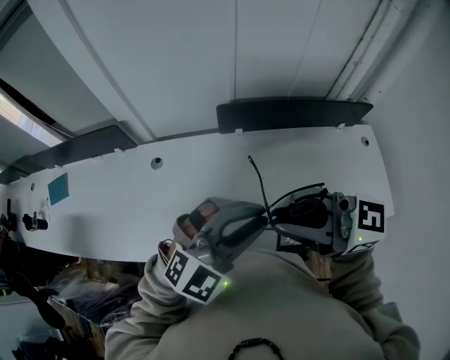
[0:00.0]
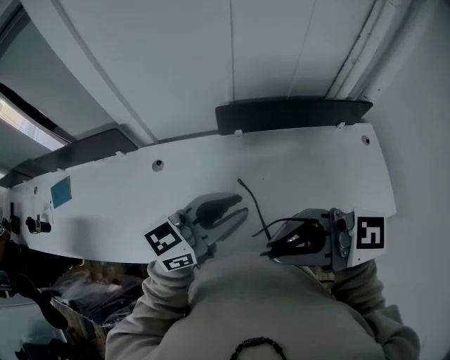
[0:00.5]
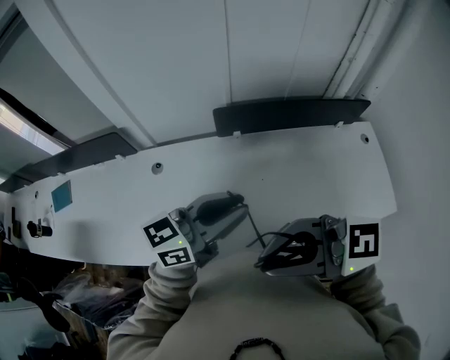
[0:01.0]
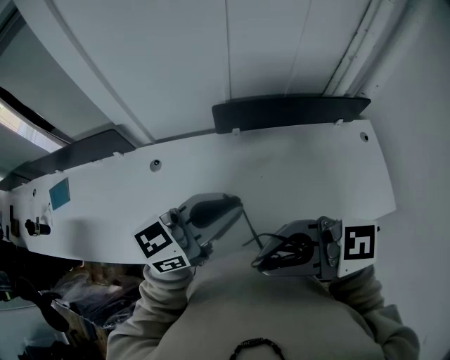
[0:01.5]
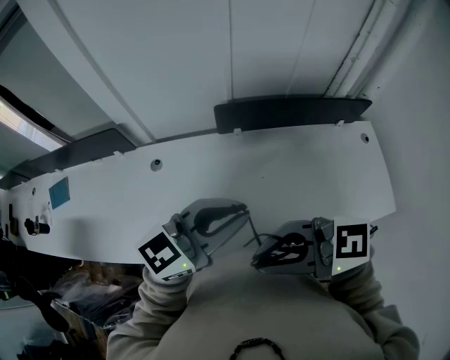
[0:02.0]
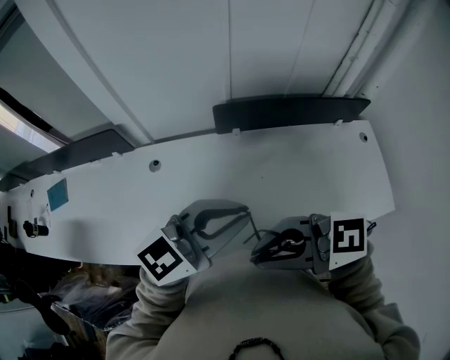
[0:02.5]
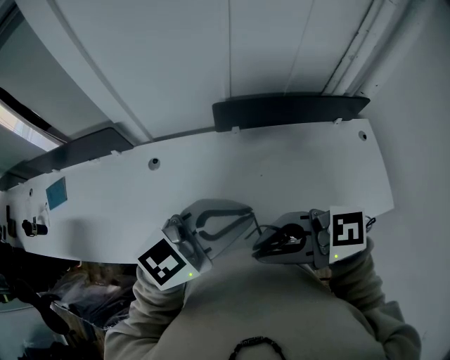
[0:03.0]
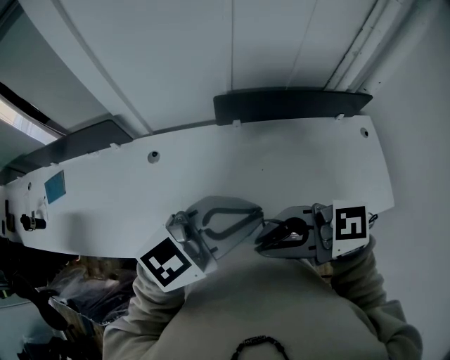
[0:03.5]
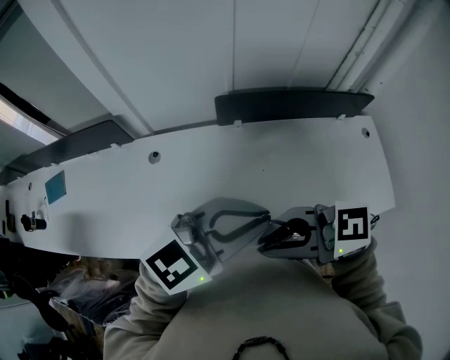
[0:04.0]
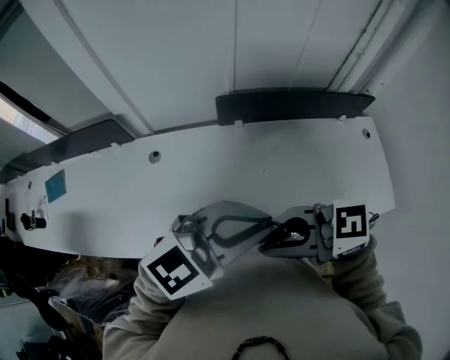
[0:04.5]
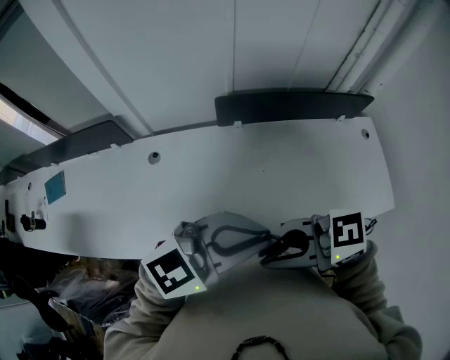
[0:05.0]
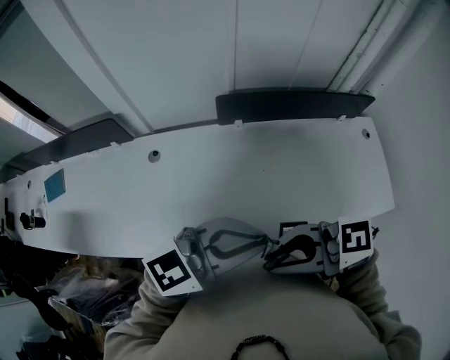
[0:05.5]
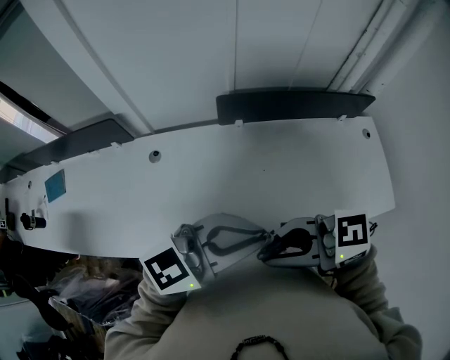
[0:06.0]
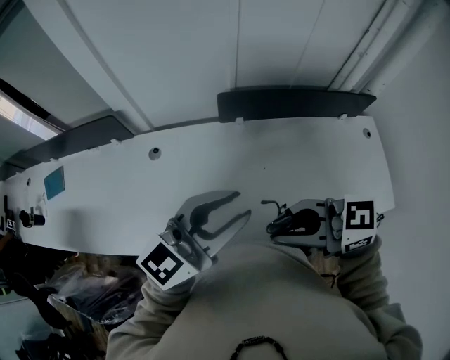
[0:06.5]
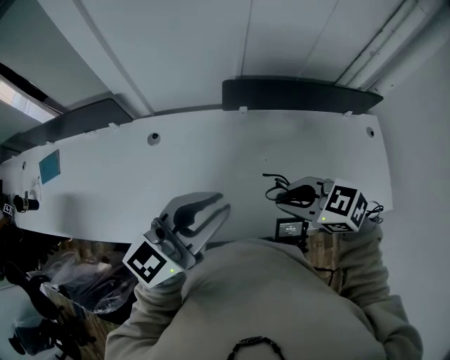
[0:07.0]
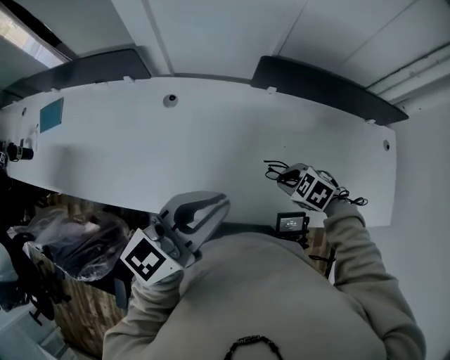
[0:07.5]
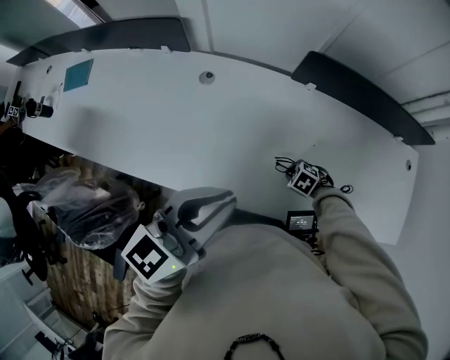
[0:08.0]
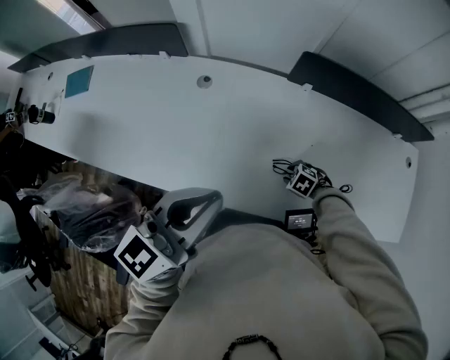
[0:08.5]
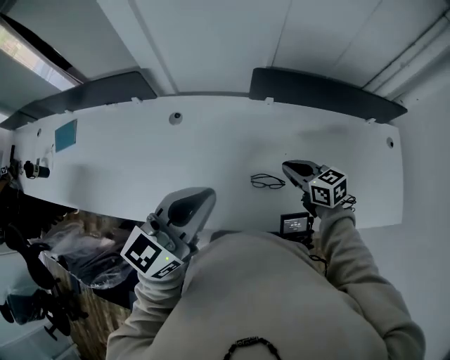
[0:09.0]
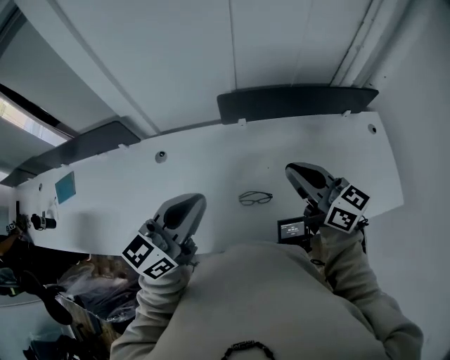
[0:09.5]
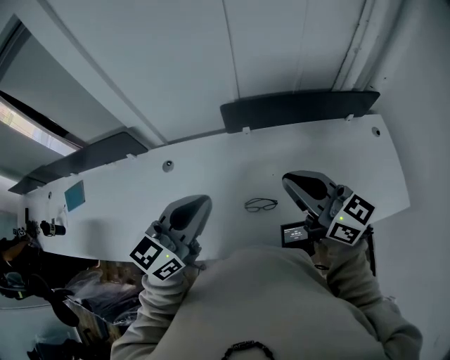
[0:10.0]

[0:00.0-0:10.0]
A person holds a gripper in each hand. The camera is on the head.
0:00.0 to 0:02.0: The left gripper twists some 40 degrees counterclockwise, seen from behind; the right gripper changes place by roughly 10 cm, and rotates approximately 20 degrees.
0:02.0 to 0:04.0: The grippers move only a little.
0:04.0 to 0:06.0: The grippers stay close to where they were, moving slightly.
0:06.0 to 0:08.0: The right gripper moves downward, roughly 50 cm, and tilts its fingers some 70 degrees downward. Meanwhile the left gripper changes place by some 20 cm, and turns by approximately 50 degrees.
0:08.0 to 0:10.0: The right gripper moves upward, about 50 cm, and tips its fingers upward by some 80 degrees. Meanwhile the left gripper ends up approximately 10 cm from where it was.

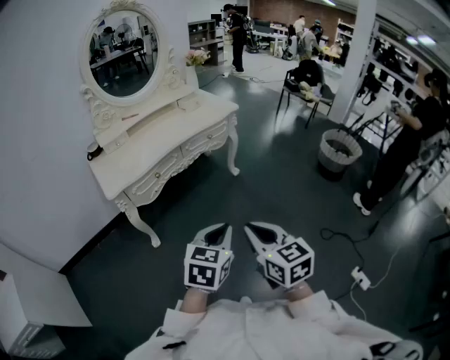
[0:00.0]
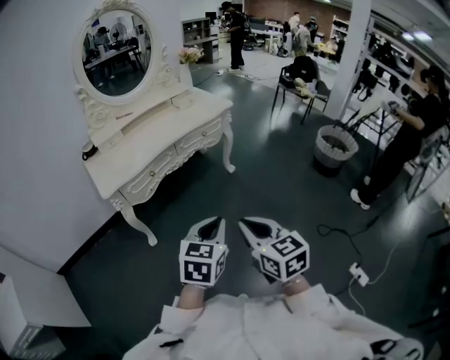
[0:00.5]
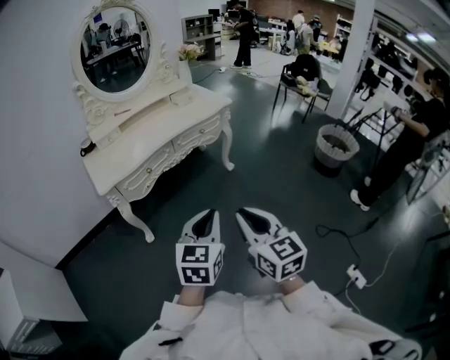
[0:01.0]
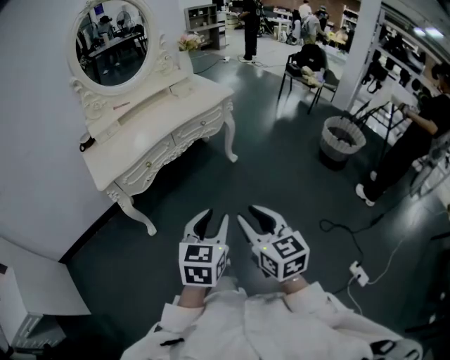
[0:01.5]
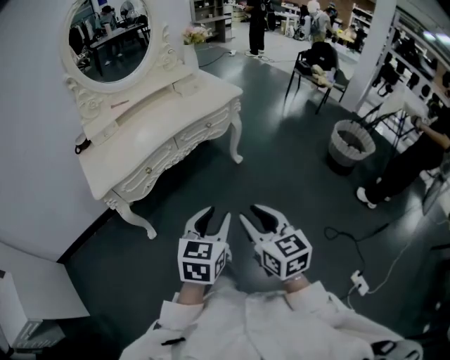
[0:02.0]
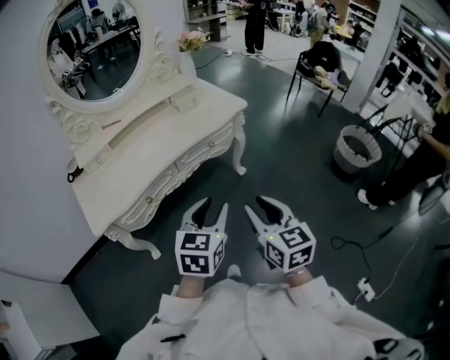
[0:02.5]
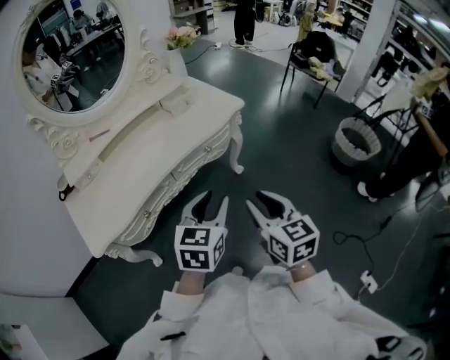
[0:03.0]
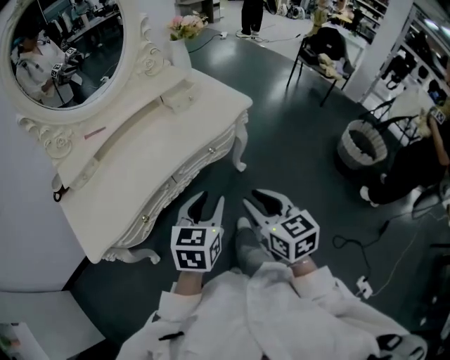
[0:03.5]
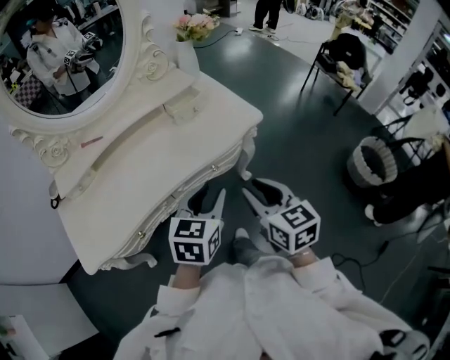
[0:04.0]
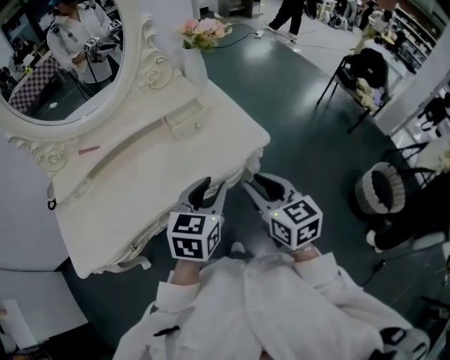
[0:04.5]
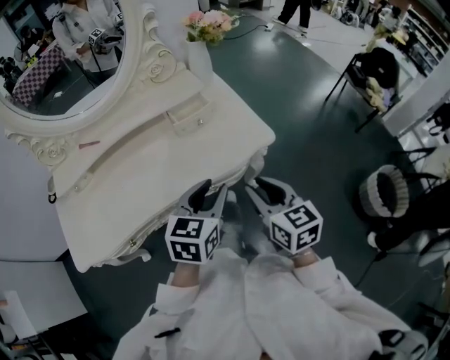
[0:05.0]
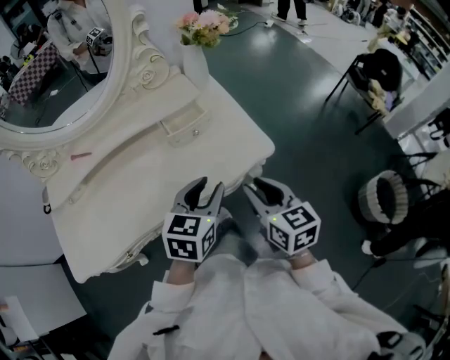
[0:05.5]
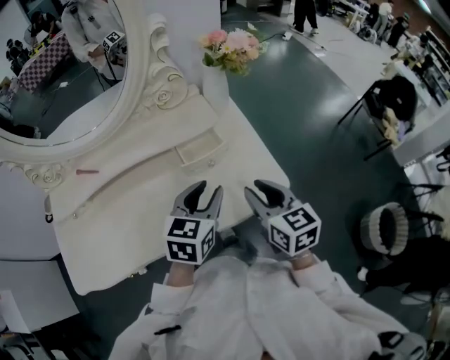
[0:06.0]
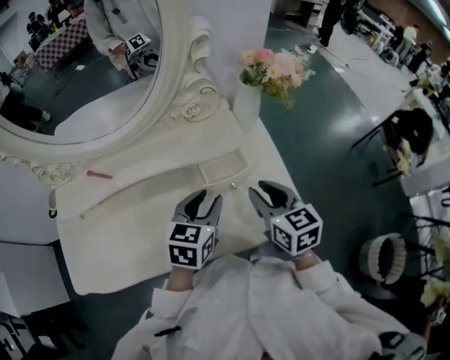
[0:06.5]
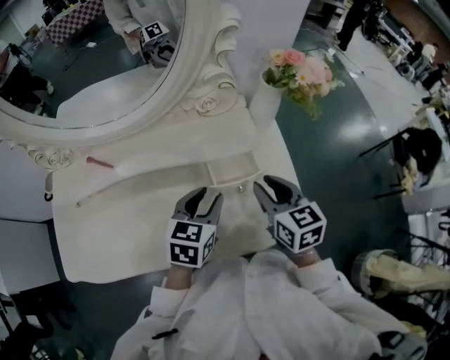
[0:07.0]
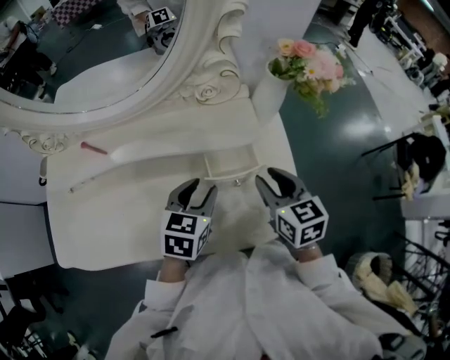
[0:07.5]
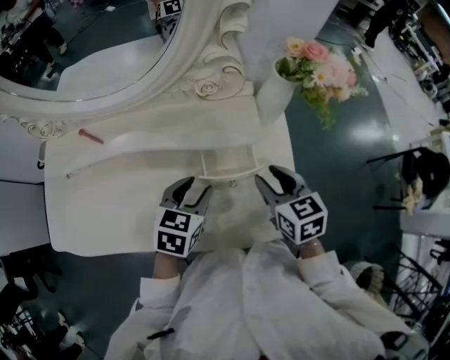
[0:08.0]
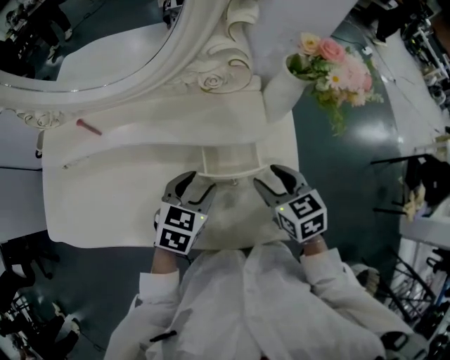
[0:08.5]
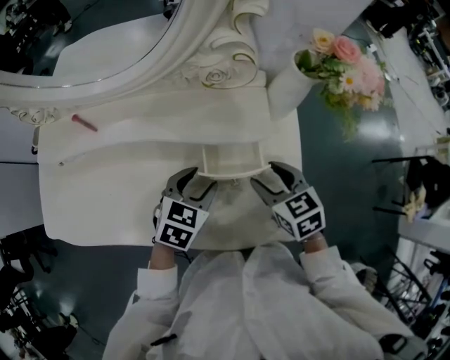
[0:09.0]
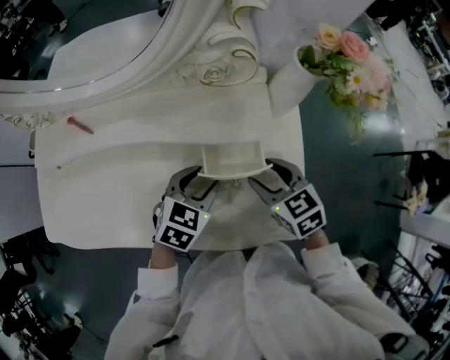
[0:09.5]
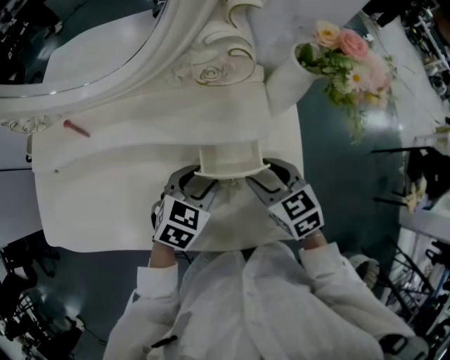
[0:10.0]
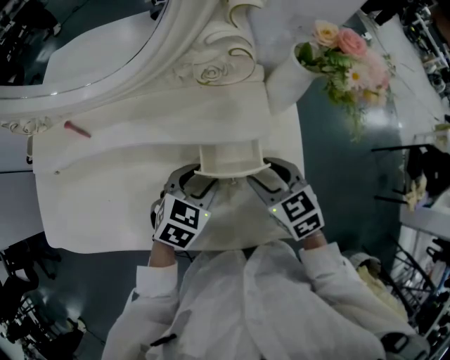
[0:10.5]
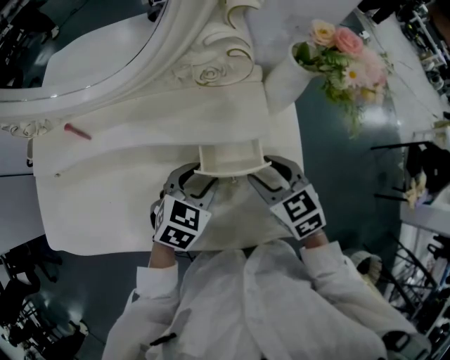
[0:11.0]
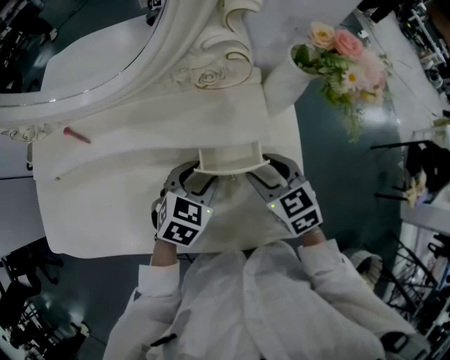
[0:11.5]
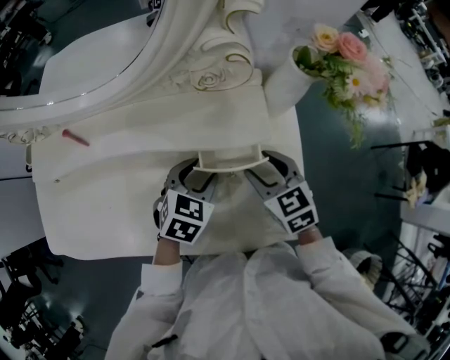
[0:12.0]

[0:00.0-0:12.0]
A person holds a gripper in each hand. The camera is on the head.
0:00.0 to 0:02.0: Both grippers travel together forward, approximately 10 cm. The right gripper opens up. The left gripper opens up.
0:02.0 to 0:04.0: The pair of grippers is taken forward, roughly 40 cm.
0:04.0 to 0:06.0: Both grippers move forward, about 25 cm.
0:06.0 to 0:08.0: The right gripper heads forward, covering approximately 15 cm, and swivels some 20 degrees. Meanwhile the left gripper shifts approximately 15 cm forward, downward and to the left.
0:08.0 to 0:10.0: The right gripper shifts by some 5 cm. The left gripper moves approximately 5 cm.
0:10.0 to 0:12.0: The grippers stay close to where they were, moving slightly.

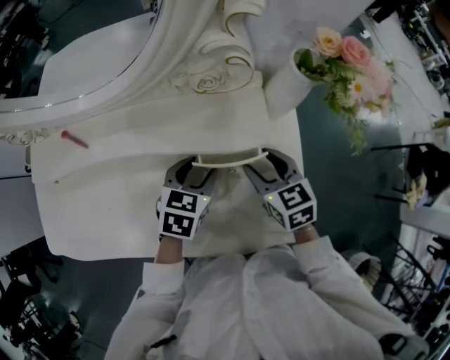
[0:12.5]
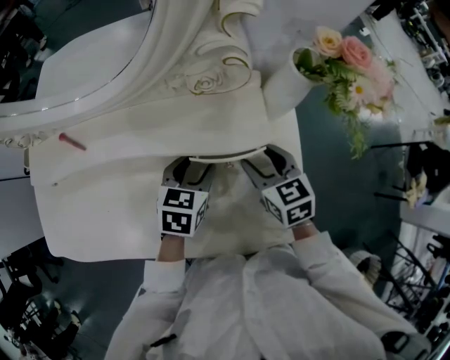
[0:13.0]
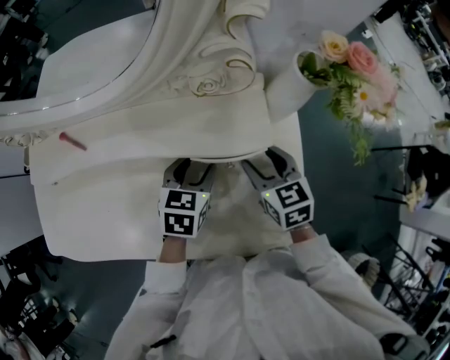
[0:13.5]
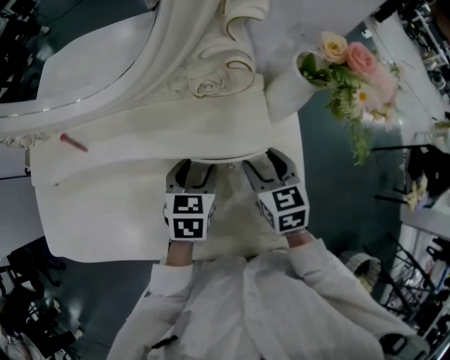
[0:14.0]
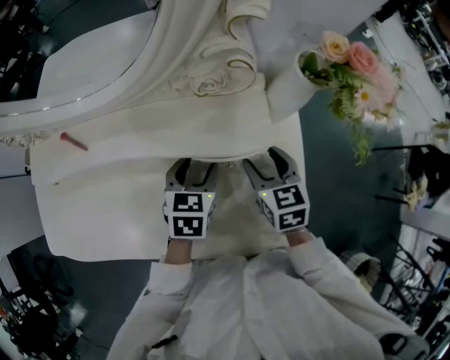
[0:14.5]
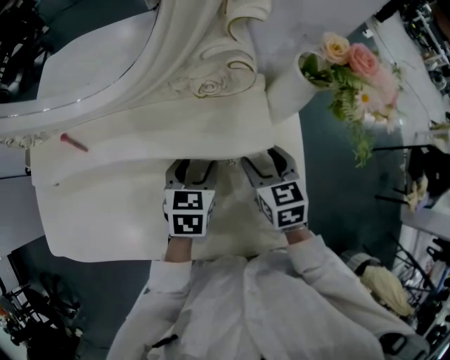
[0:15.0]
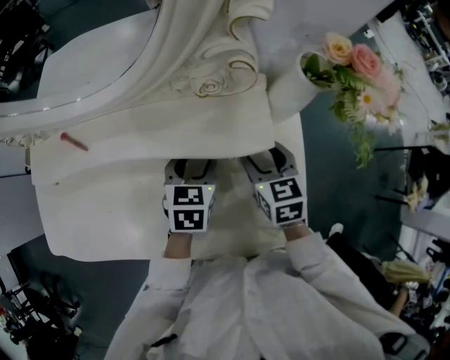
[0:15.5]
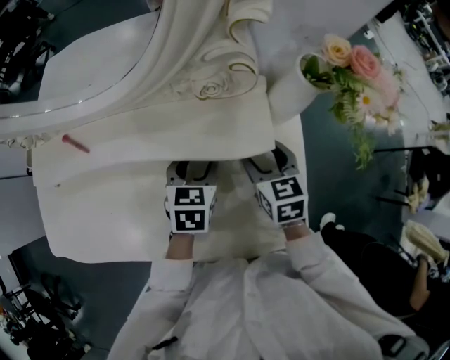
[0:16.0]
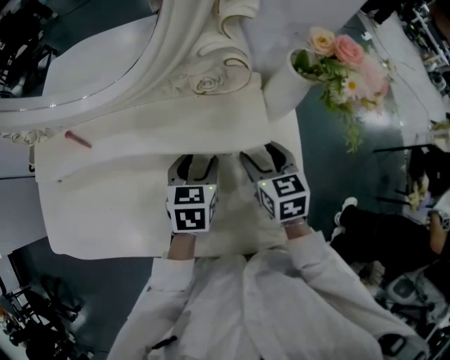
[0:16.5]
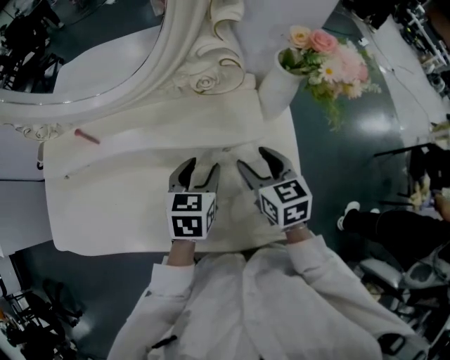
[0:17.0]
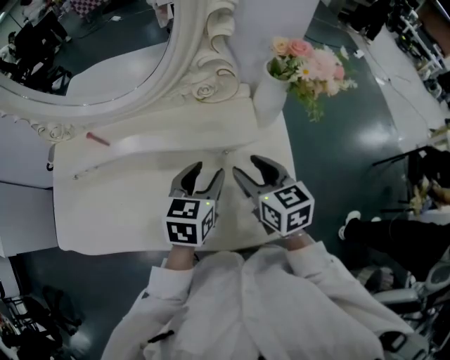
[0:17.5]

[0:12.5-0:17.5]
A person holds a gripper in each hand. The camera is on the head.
0:12.5 to 0:15.0: There are only small adjustments of the grippers.
0:15.0 to 0:17.5: Both grippers travel together upward and backward, approximately 10 cm.
